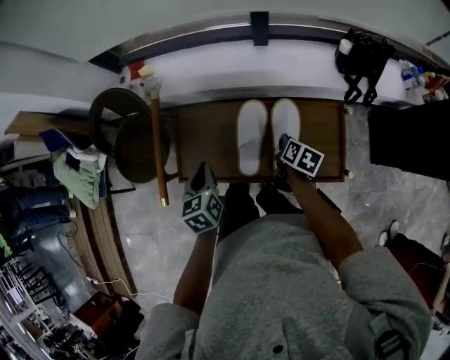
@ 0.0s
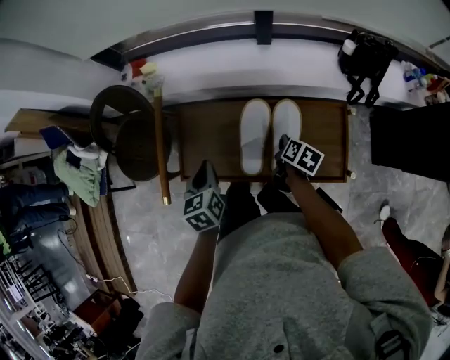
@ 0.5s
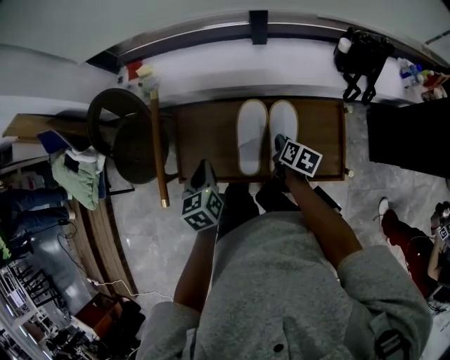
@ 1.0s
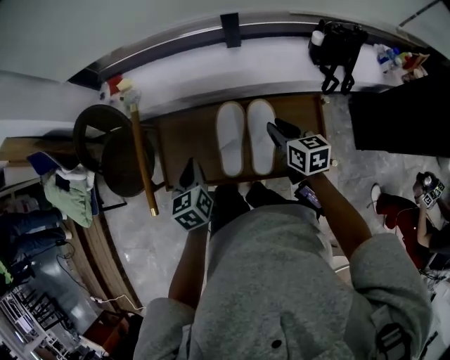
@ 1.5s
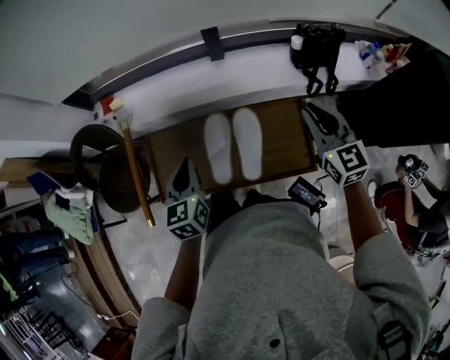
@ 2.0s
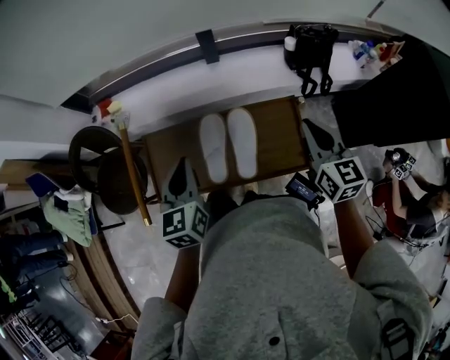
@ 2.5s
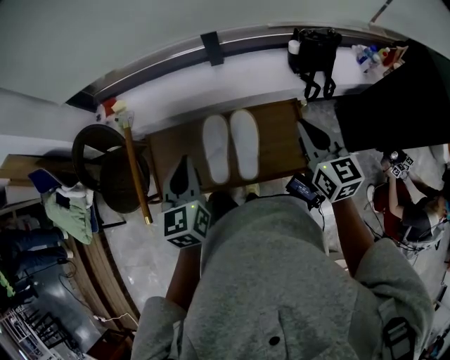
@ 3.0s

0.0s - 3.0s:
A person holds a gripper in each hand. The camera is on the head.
0.0s - 1.5s: The right gripper goes roughly 10 cm upward, and turns by roughly 40 degrees.
1.5s - 3.0s: The two grippers go approximately 20 cm upward and to the right. The left gripper swivels about 20 degrees, while the right gripper rotates roughly 30 degrees.

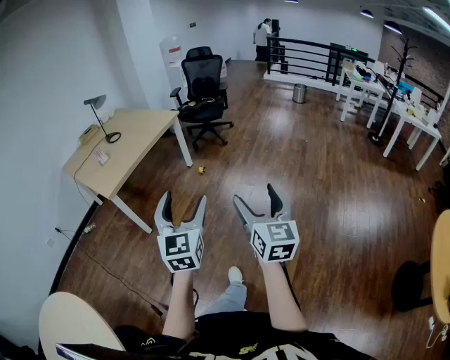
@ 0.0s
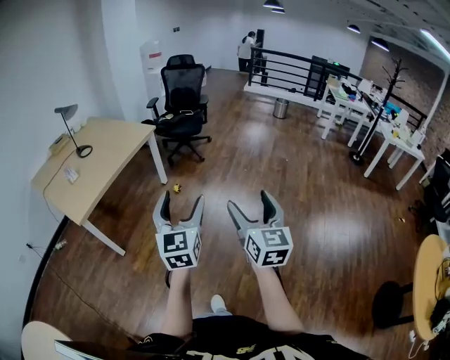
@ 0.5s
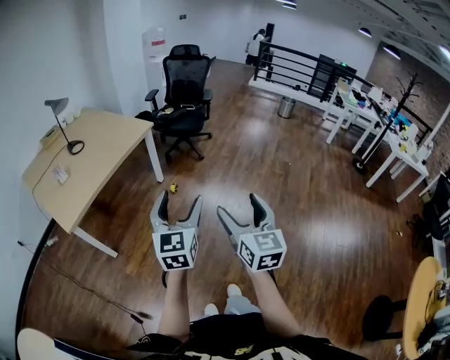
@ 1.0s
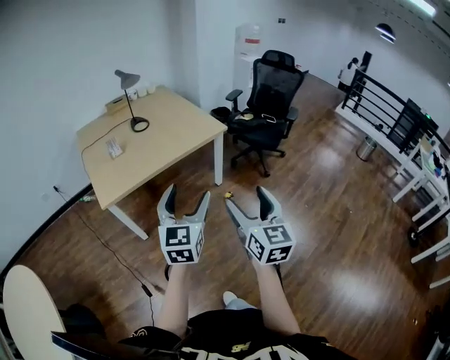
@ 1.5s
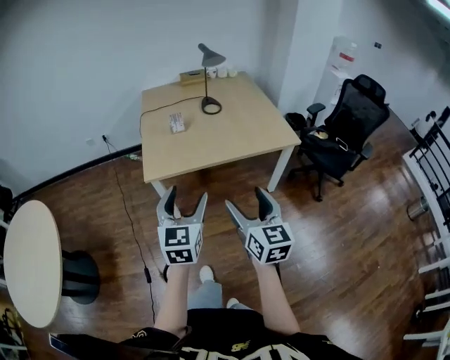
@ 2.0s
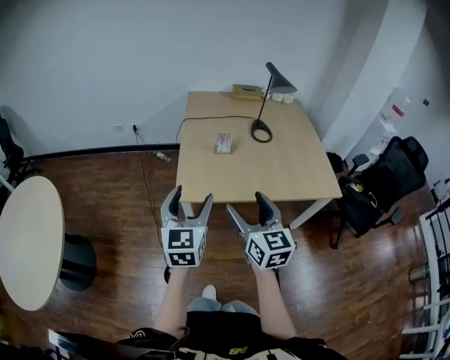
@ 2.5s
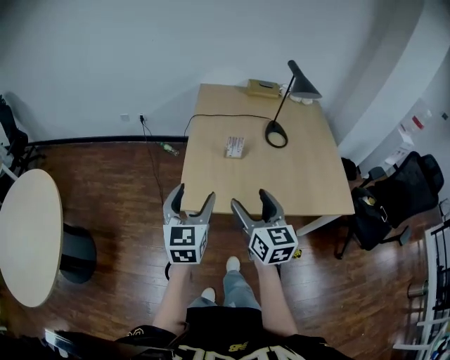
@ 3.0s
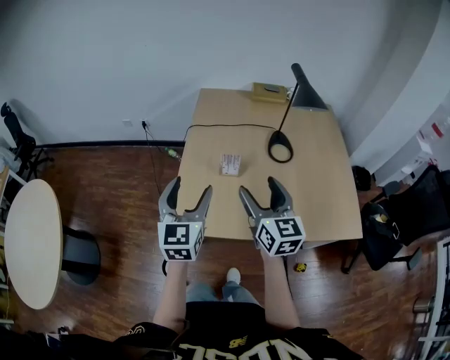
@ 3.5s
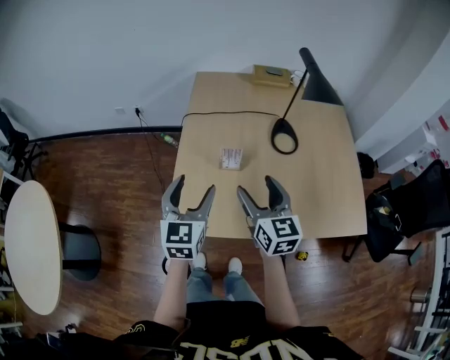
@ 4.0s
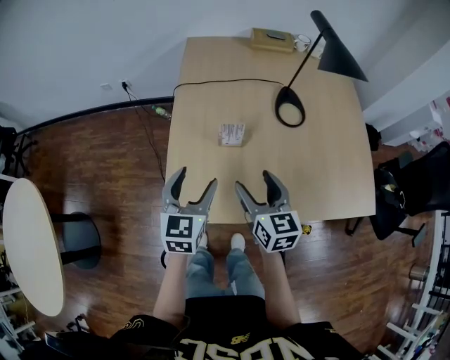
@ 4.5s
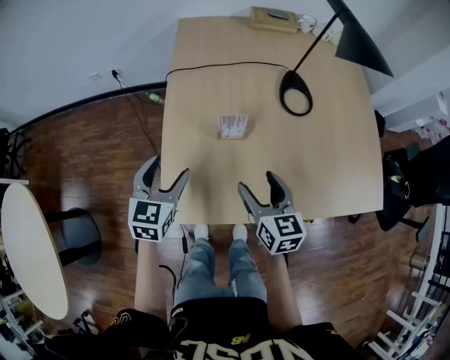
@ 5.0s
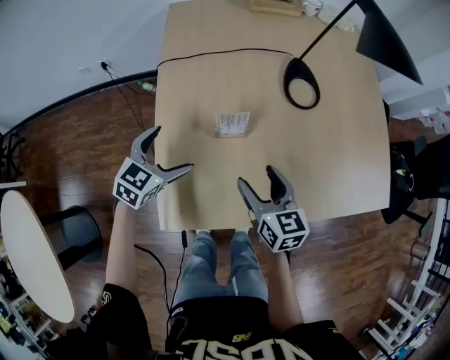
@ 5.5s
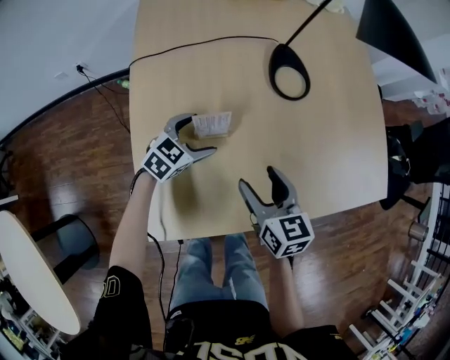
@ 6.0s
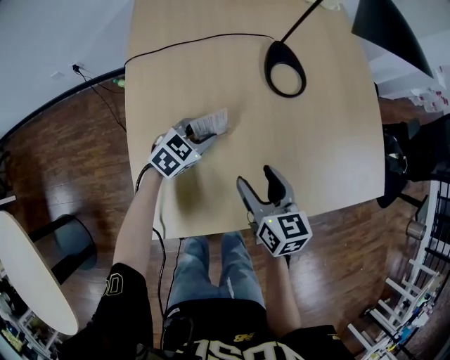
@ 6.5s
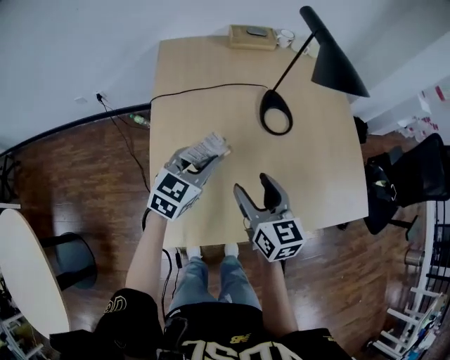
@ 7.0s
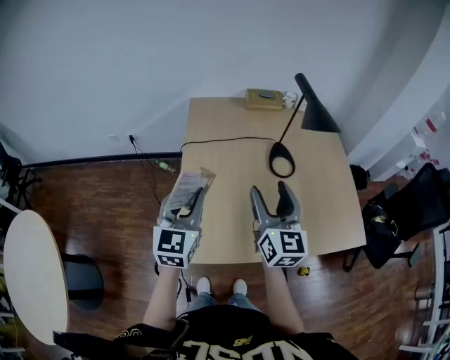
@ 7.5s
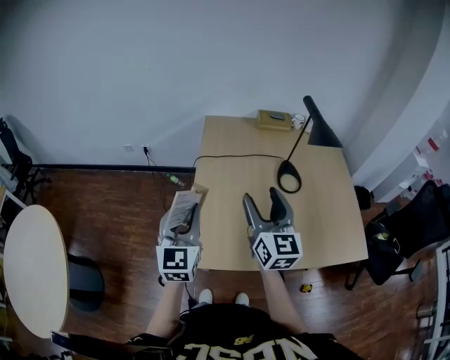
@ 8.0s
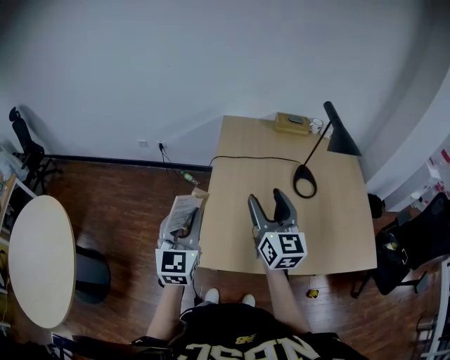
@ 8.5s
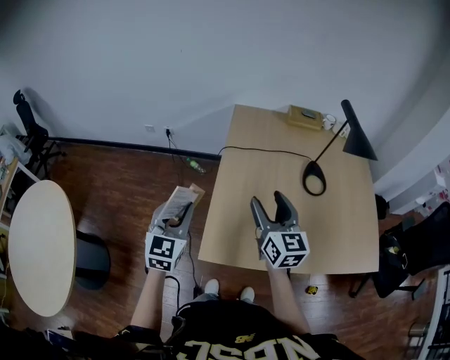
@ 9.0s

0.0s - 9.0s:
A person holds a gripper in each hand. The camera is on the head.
0.0s - 2.0s: Both grippers are carried approximately 60 cm. The left gripper rotates about 50 degrees. The right gripper rotates approximately 60 degrees.
2.0s - 4.5s: Both grippers are carried forward, roughly 50 cm. The right gripper changes its angle by some 20 degrees.
4.5s - 7.0s: The left gripper travels downward and back again, some 25 cm each way, changes its angle by about 30 degrees, and closes. The right gripper moves roughly 10 cm downward and comes back.
7.0s - 9.0s: The left gripper goes roughly 35 cm to the left, backward and upward, and changes its angle by some 40 degrees. Meanwhile the right gripper shifts roughly 20 cm upward and to the left.

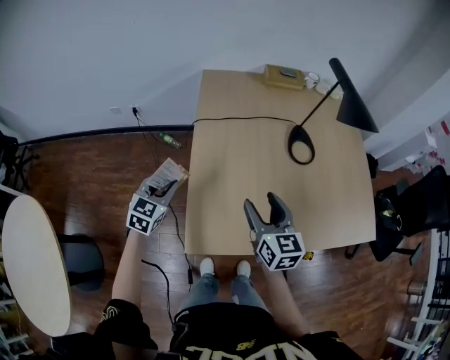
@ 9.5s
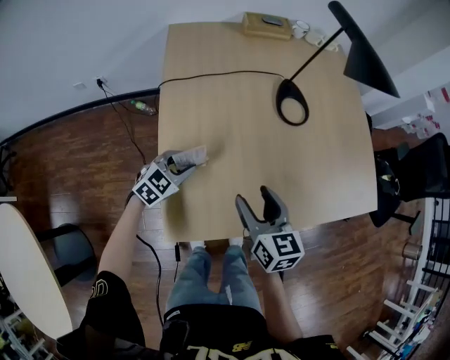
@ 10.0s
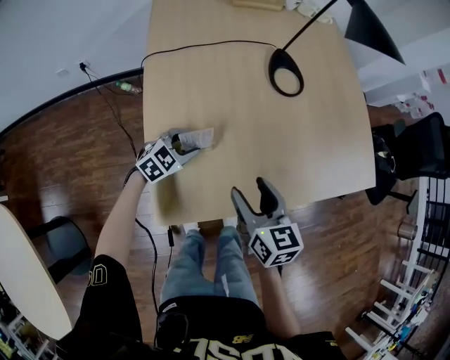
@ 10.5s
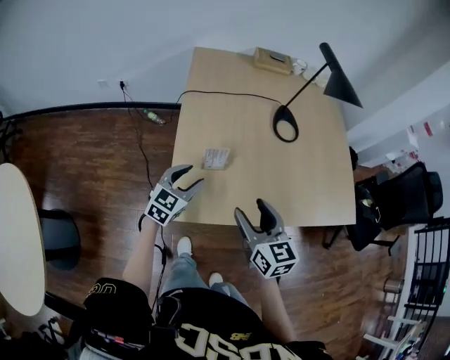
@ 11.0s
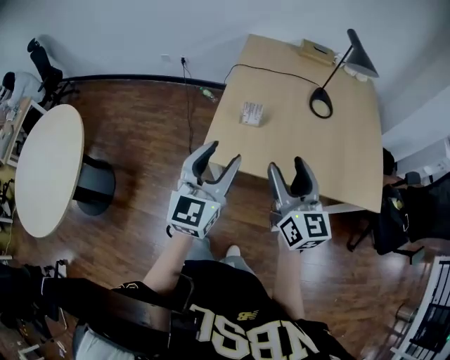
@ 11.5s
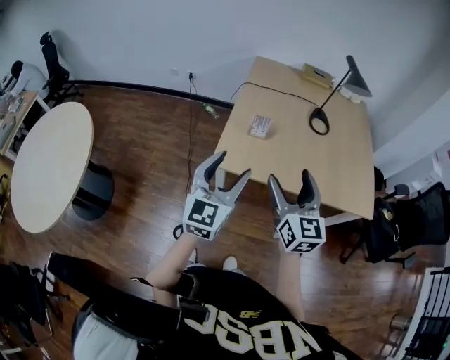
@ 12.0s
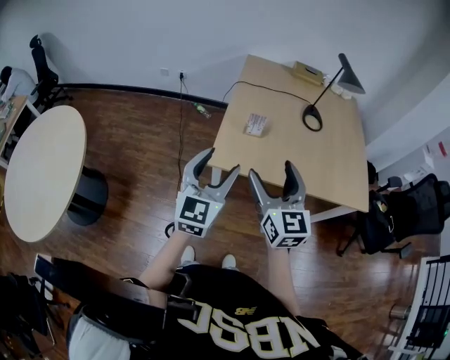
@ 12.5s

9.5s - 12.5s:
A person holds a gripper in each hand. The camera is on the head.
9.5s - 11.0s: The right gripper is displaced backward and to the right by roughly 15 cm, and moves about 10 cm downward and comes back. Meanwhile the left gripper travels to the right by about 15 cm, and reaches roughly 20 cm downward, then returns.
11.0s - 12.5s: The left gripper goes some 40 cm backward and upward, and swivels roughly 30 degrees. The right gripper moves backward and upward, about 25 cm, and changes its angle by approximately 20 degrees.

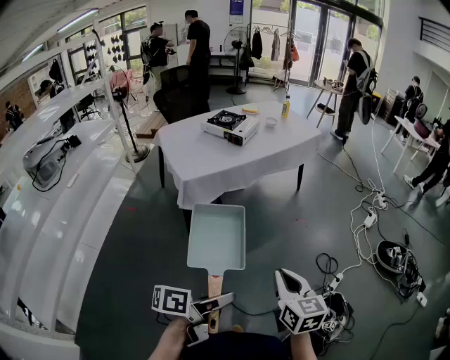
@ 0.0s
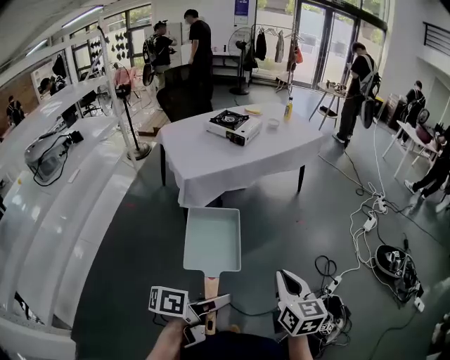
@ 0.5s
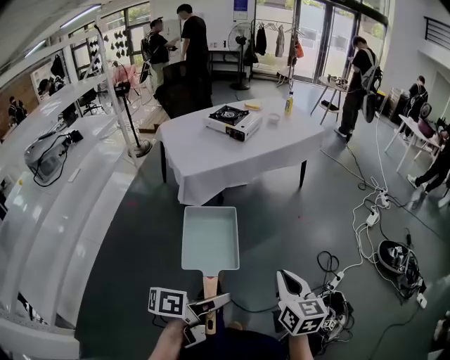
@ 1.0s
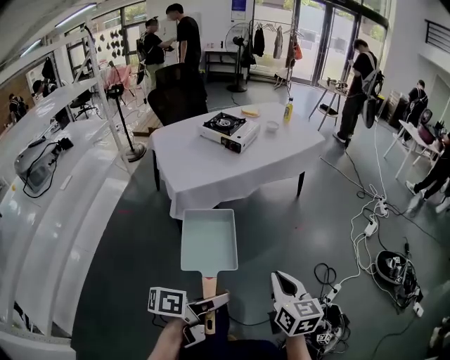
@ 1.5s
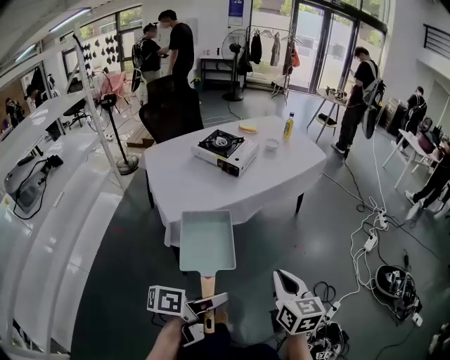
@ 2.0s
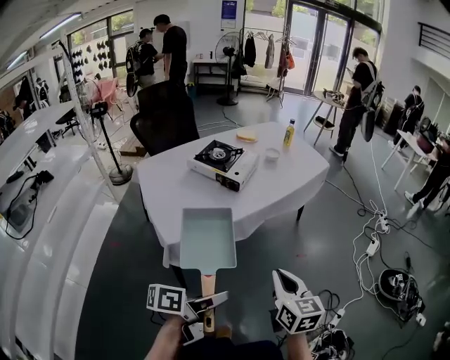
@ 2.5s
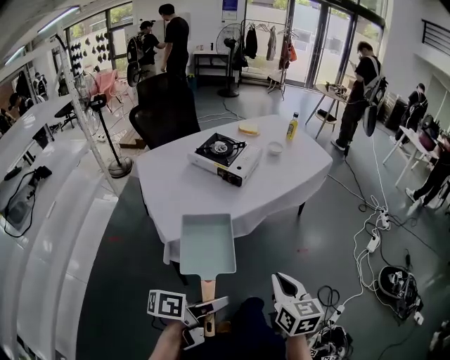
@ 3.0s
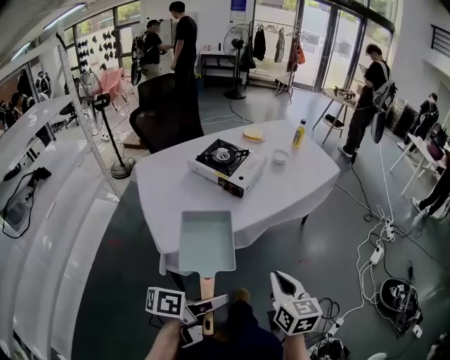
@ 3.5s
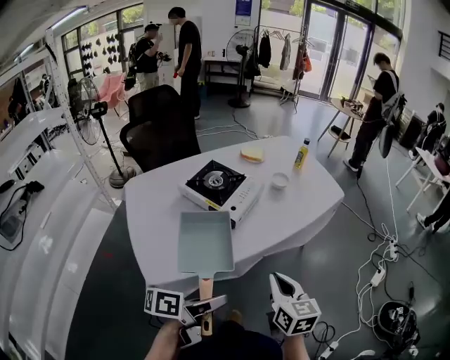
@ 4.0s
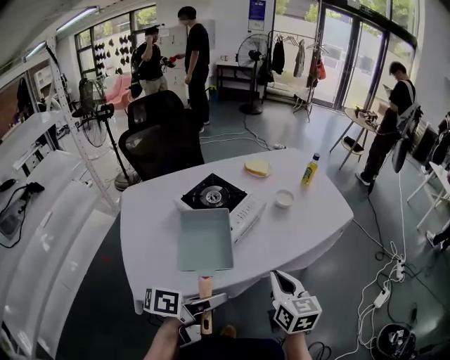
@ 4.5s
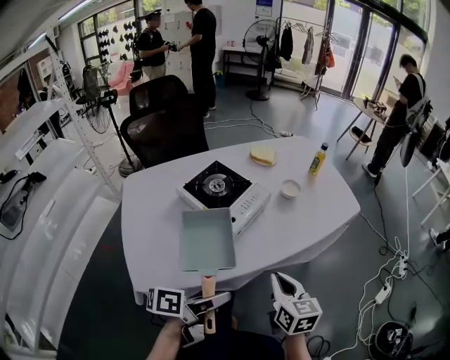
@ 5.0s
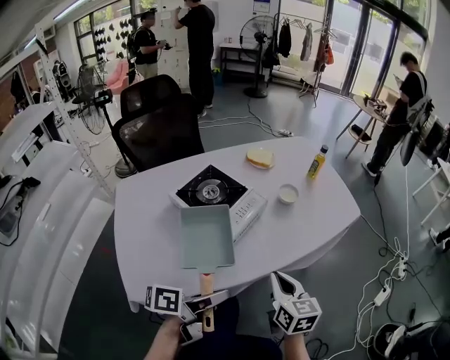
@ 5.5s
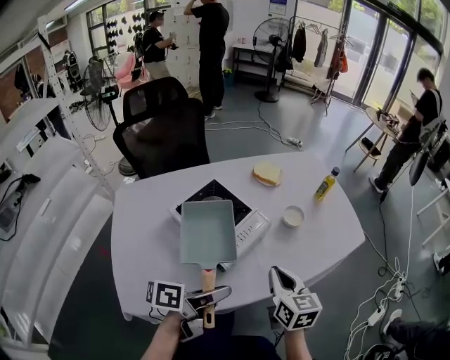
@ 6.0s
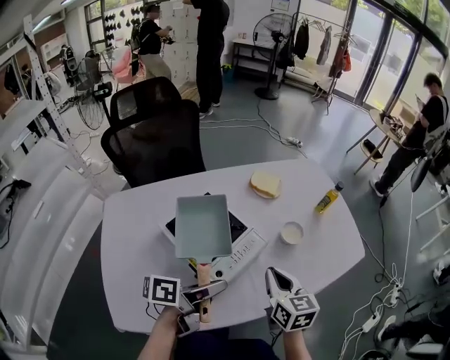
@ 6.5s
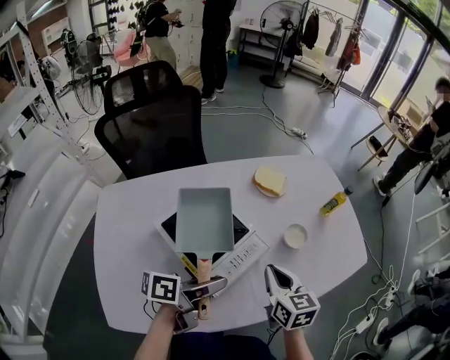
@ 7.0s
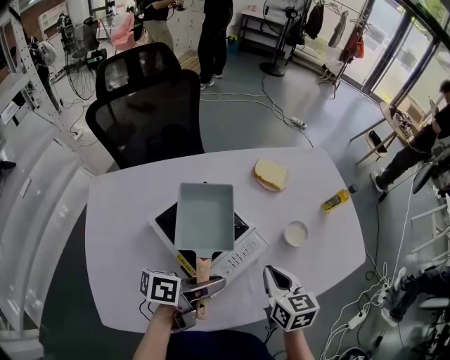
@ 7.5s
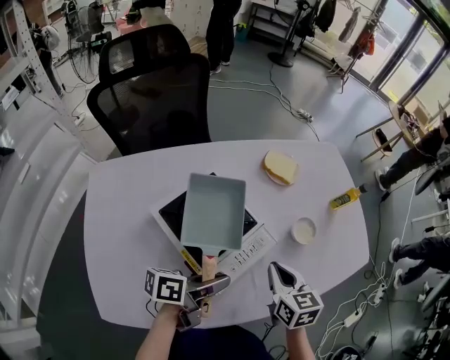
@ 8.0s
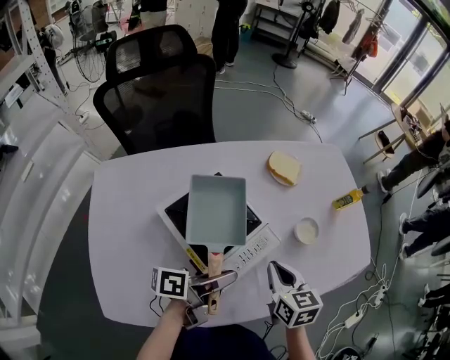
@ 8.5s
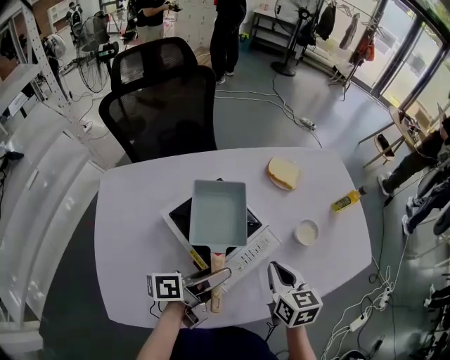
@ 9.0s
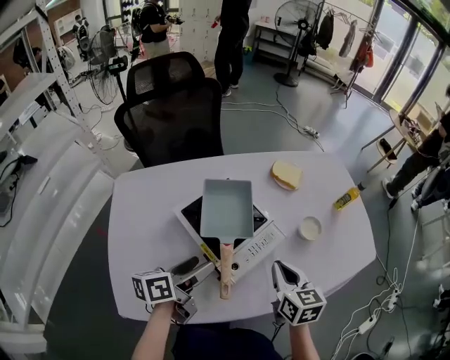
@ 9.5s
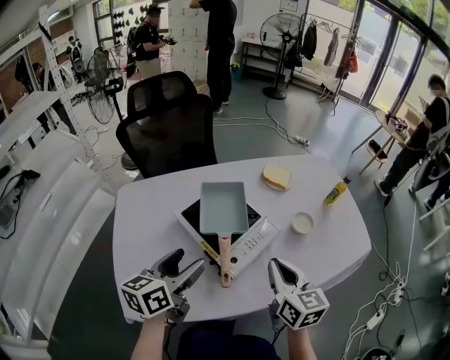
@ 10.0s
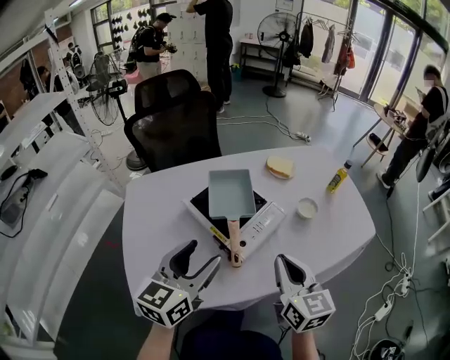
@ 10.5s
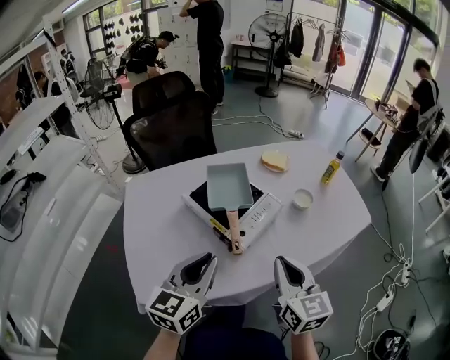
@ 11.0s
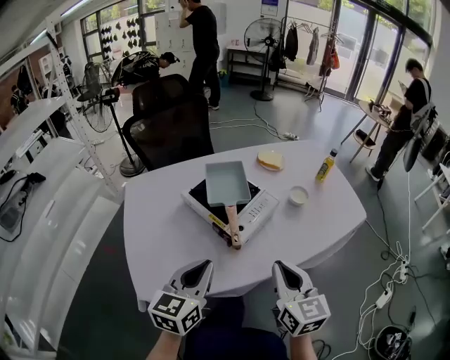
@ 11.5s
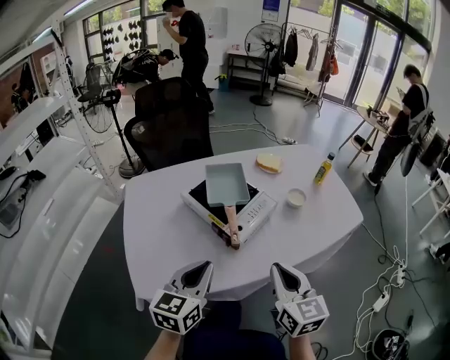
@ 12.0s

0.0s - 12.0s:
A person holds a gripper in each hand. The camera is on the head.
0.0s - 2.0s: The left gripper moves forward and to the left, roughly 25 cm. Meanwhile the right gripper heads forward, covering some 20 cm.
2.0s - 4.0s: Both grippers travel together forward, some 30 cm.
4.0s - 6.0s: The two grippers go some 25 cm forward.
6.0s - 8.0s: The two grippers go about 15 cm forward and downward.
8.0s - 10.0s: The left gripper is displaced to the left, upward and backward by some 15 cm, changes its angle by about 50 degrees, and opens. Meanwhile the right gripper shifts approximately 15 cm upward and backward.
10.0s - 12.0s: Both grippers travel together backward, about 15 cm. The left gripper turns by about 20 degrees, and closes.
